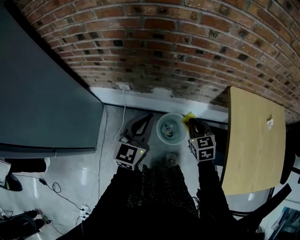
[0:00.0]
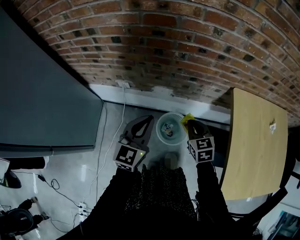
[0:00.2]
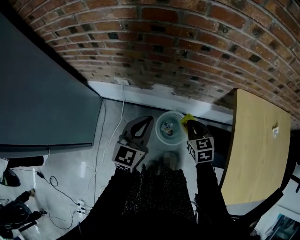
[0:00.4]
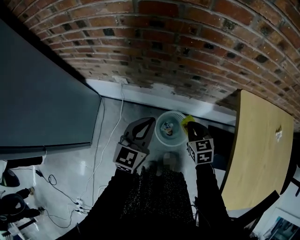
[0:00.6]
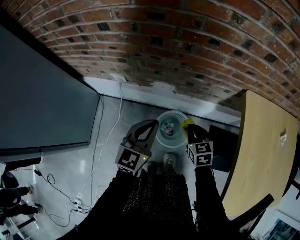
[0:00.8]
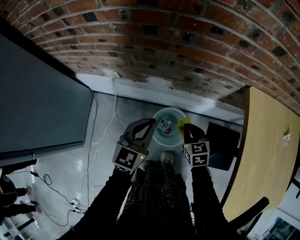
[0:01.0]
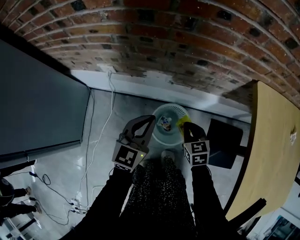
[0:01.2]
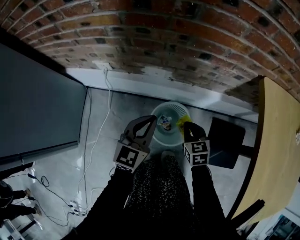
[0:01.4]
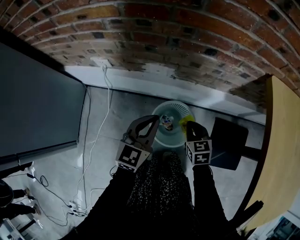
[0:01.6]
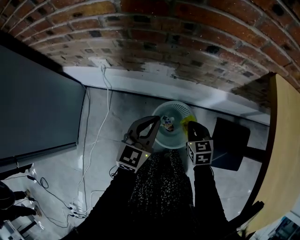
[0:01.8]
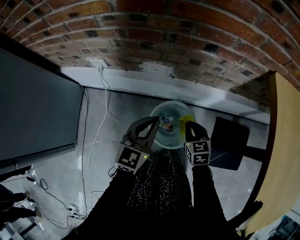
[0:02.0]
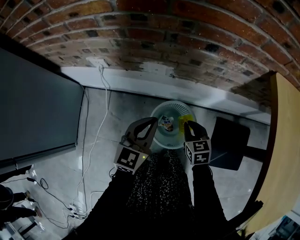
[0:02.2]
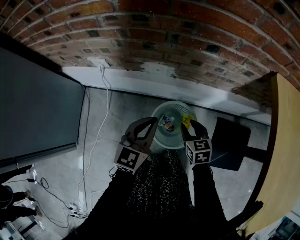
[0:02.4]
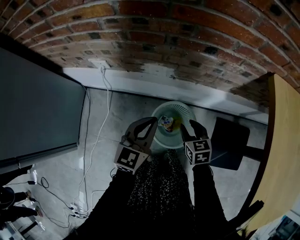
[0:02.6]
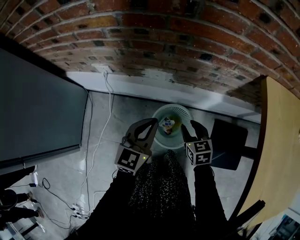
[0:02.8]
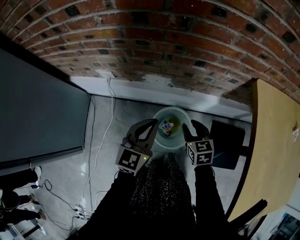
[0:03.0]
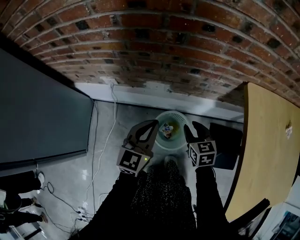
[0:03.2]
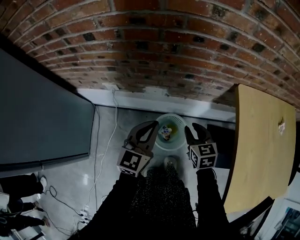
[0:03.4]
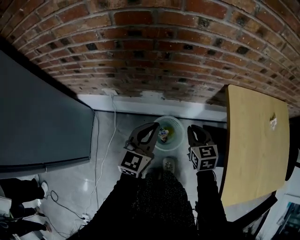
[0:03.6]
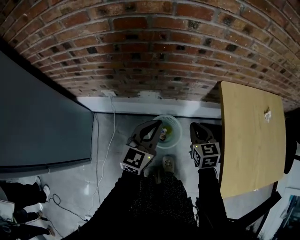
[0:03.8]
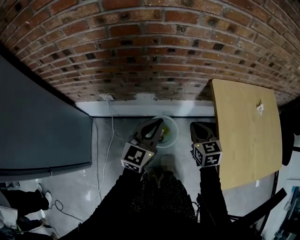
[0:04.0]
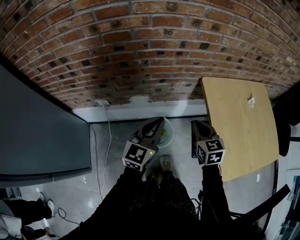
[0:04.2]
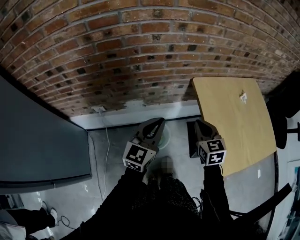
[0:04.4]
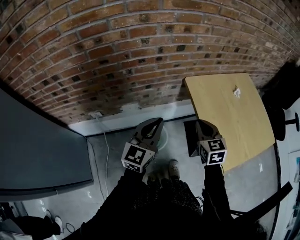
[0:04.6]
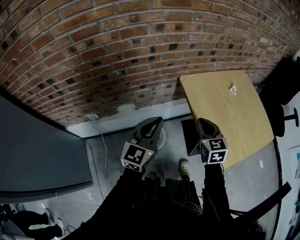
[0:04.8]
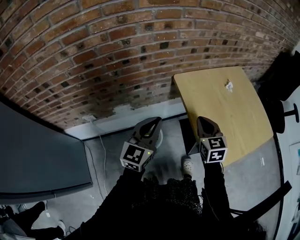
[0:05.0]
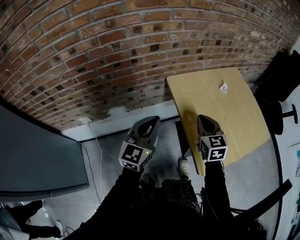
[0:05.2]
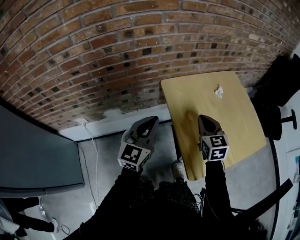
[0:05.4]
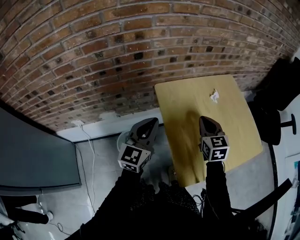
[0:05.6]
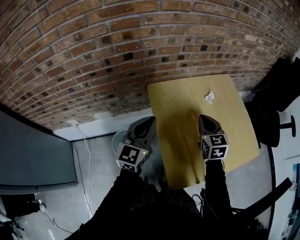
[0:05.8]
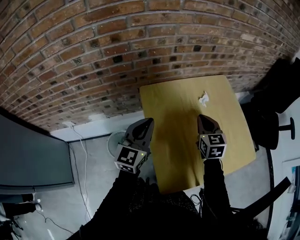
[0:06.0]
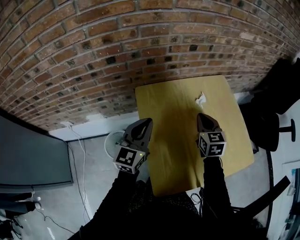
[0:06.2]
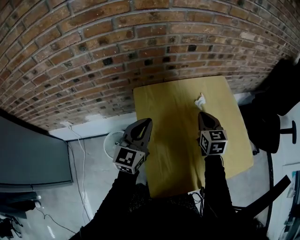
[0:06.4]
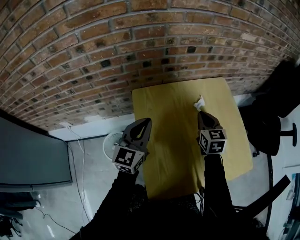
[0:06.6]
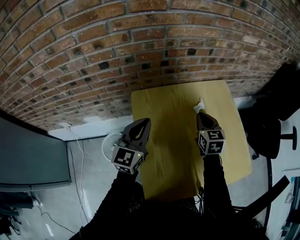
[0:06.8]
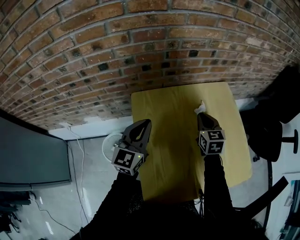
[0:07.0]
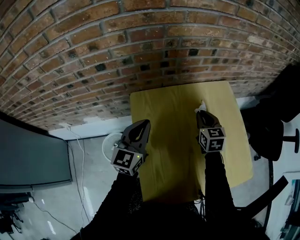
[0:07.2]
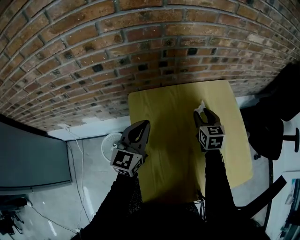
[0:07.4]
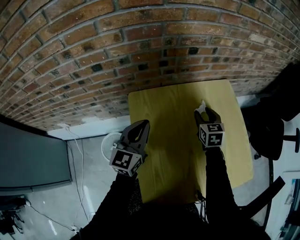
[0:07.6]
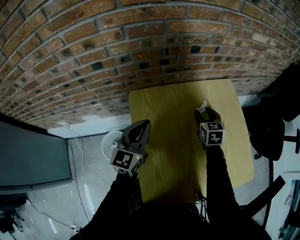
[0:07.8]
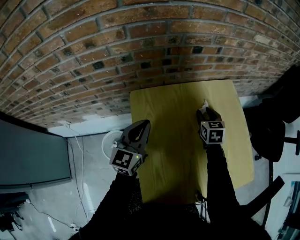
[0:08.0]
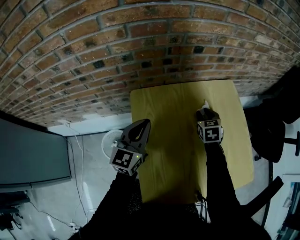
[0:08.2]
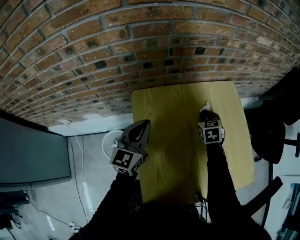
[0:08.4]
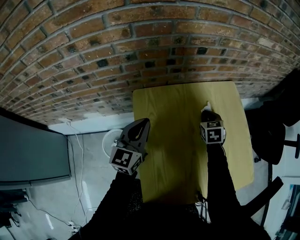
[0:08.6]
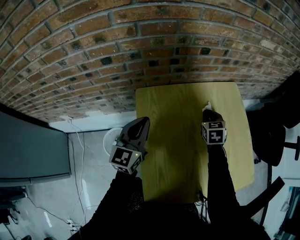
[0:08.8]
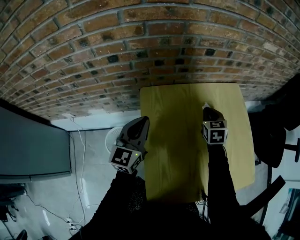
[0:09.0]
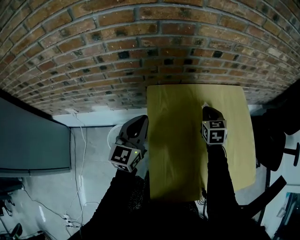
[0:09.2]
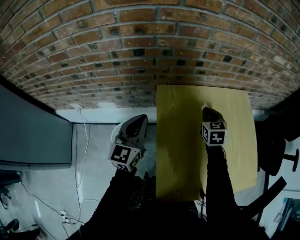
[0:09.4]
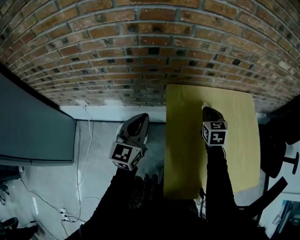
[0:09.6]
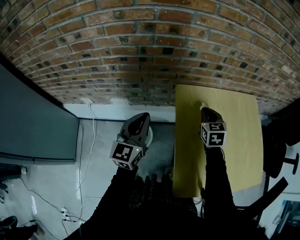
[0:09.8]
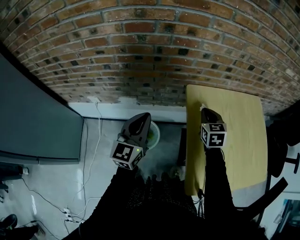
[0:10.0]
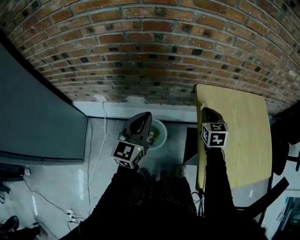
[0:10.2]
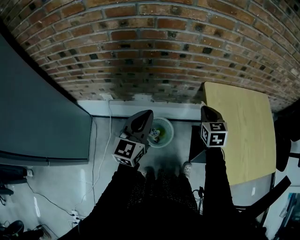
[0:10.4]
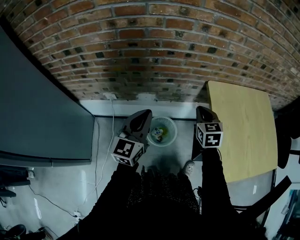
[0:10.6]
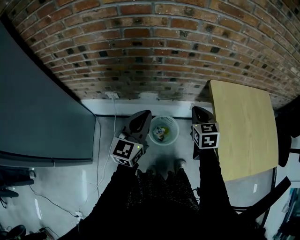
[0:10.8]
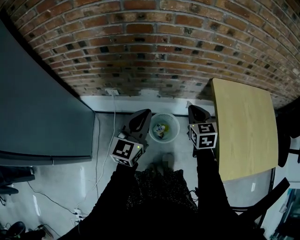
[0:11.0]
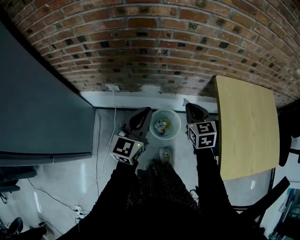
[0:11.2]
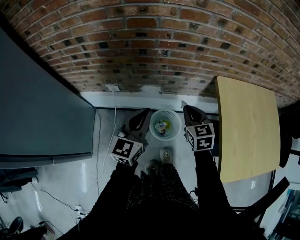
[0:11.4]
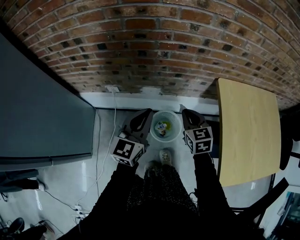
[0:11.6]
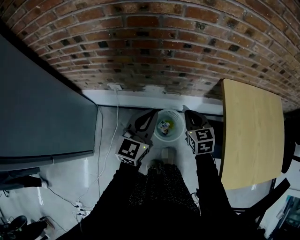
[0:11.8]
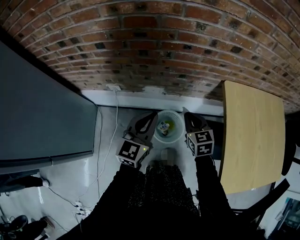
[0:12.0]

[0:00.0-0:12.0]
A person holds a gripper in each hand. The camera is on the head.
0.0 to 1.6 s: The grippers both shift downward by approximately 30 cm.
1.6 to 3.0 s: The two grippers go roughly 10 cm upward. The right gripper opens.
3.0 to 4.4 s: The grippers both shift upward and to the right by about 30 cm. The left gripper turns by roughly 20 degrees, while the right gripper swivels approximately 20 degrees, and closes its fingers.
4.4 to 6.0 s: The two grippers go roughly 30 cm to the right and forward.
6.0 to 7.6 s: The right gripper heads forward, downward and to the right, covering roughly 15 cm, and opens; the left gripper is displaced forward by about 10 cm.
7.6 to 9.0 s: The right gripper closes.
9.0 to 10.4 s: The two grippers go about 35 cm to the left.
10.4 to 12.0 s: The left gripper travels downward and to the left by about 10 cm; the right gripper moves to the left and downward, roughly 15 cm.

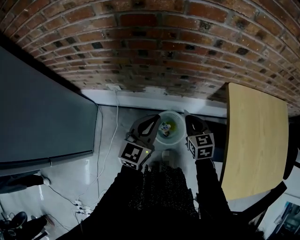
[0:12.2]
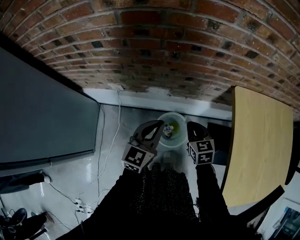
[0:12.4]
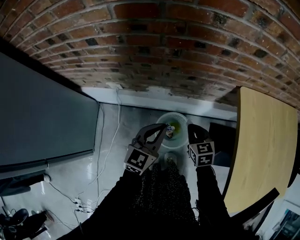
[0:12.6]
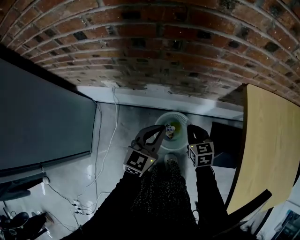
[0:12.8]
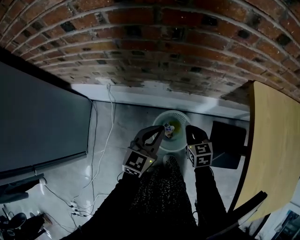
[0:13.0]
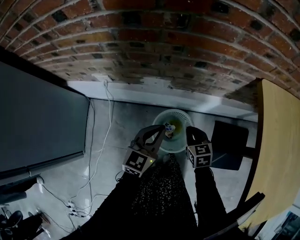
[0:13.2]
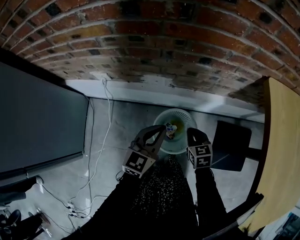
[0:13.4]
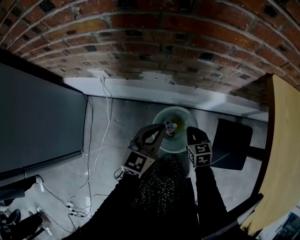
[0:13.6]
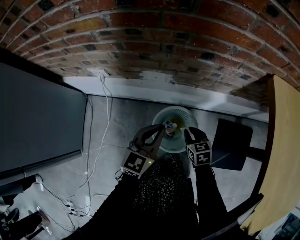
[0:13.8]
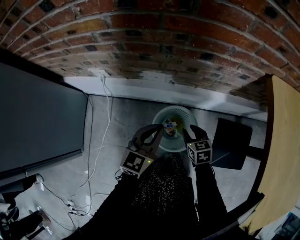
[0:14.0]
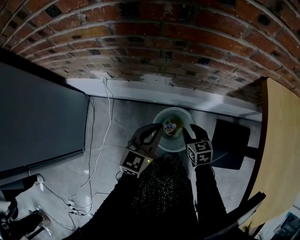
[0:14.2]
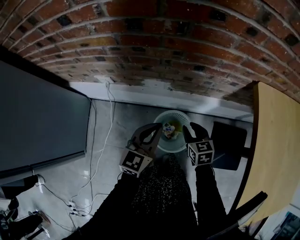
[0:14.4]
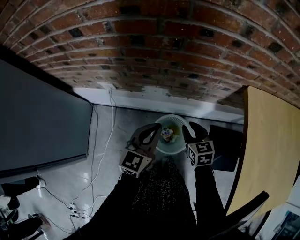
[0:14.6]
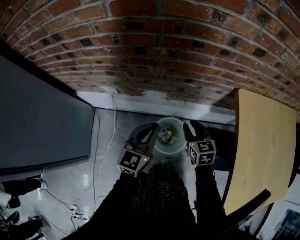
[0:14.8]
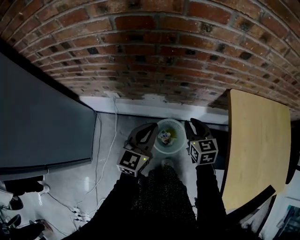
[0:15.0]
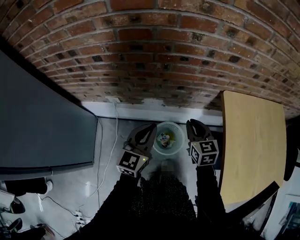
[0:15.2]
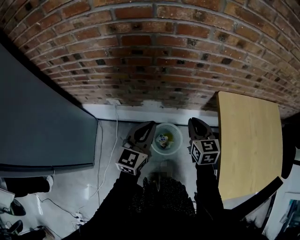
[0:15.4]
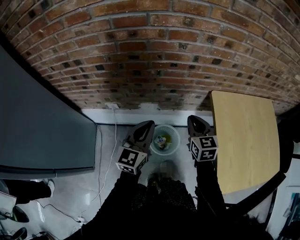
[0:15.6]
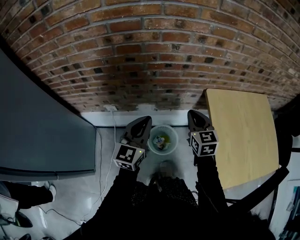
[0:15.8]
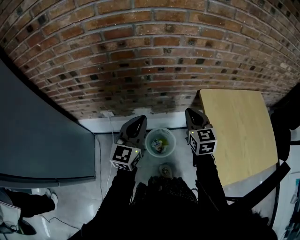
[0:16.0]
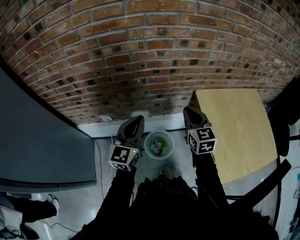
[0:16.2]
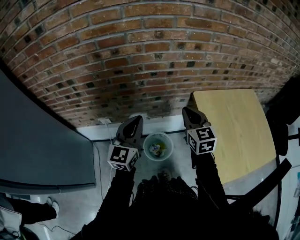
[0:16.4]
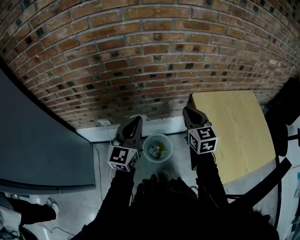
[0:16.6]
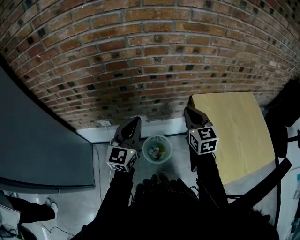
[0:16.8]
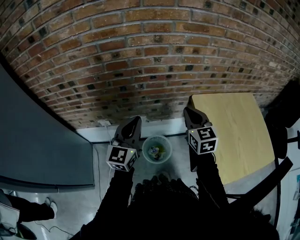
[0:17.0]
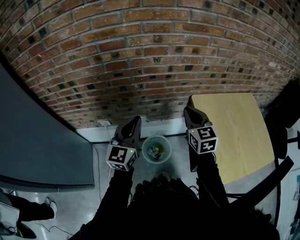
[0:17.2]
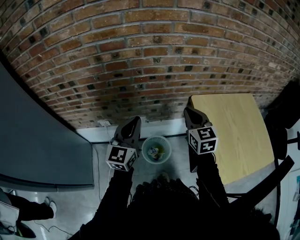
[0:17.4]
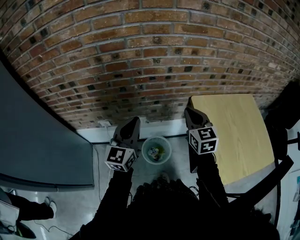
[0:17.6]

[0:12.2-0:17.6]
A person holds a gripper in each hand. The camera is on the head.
12.2 to 13.6 s: The two grippers go about 30 cm downward.
13.6 to 15.0 s: Both grippers travel together upward, some 30 cm. The right gripper opens up.
15.0 to 16.2 s: The grippers both shift upward by about 20 cm. The right gripper closes its fingers.
16.2 to 17.6 s: The grippers move only a little.

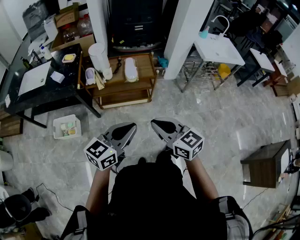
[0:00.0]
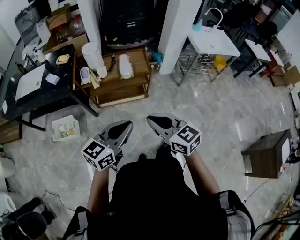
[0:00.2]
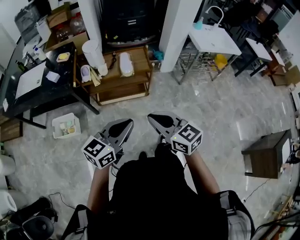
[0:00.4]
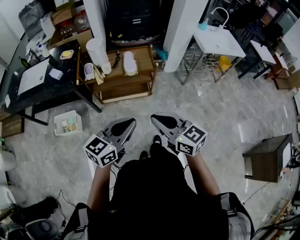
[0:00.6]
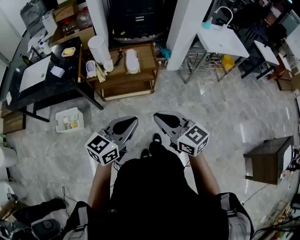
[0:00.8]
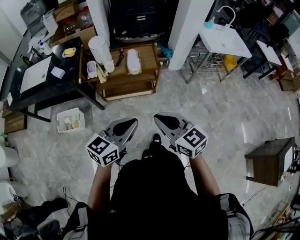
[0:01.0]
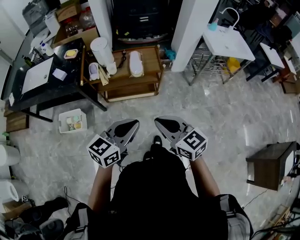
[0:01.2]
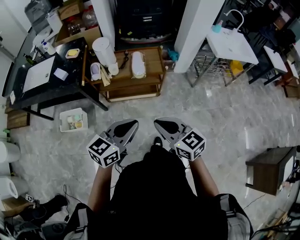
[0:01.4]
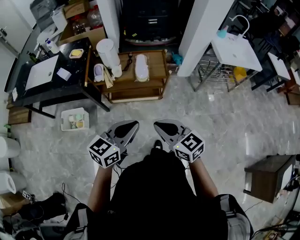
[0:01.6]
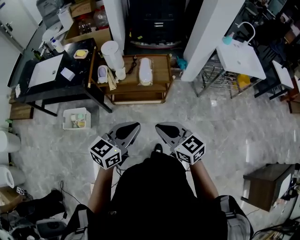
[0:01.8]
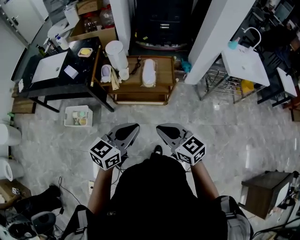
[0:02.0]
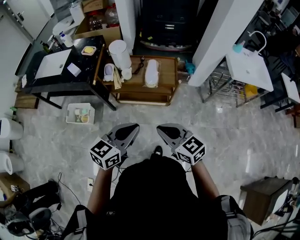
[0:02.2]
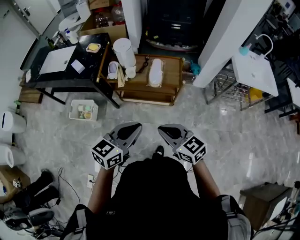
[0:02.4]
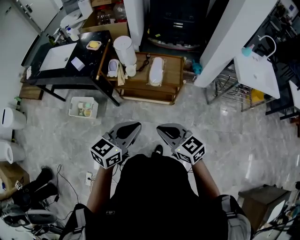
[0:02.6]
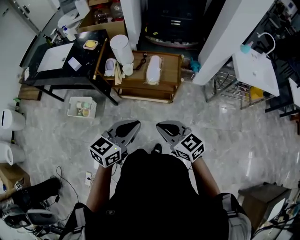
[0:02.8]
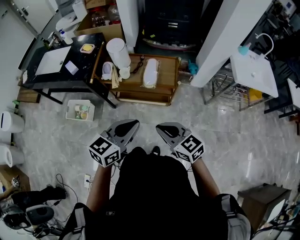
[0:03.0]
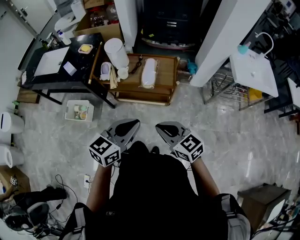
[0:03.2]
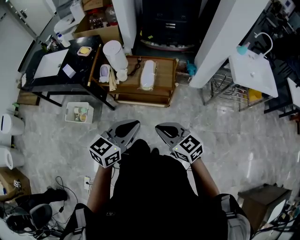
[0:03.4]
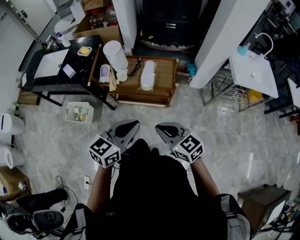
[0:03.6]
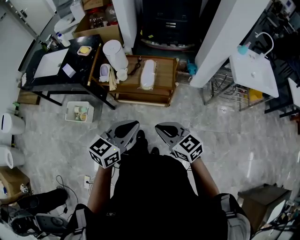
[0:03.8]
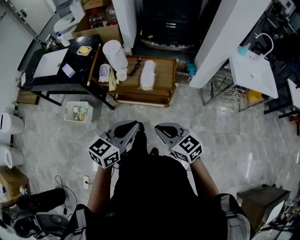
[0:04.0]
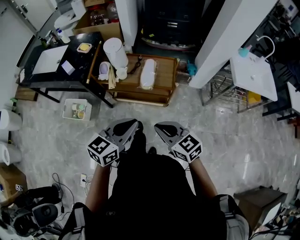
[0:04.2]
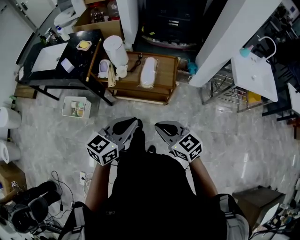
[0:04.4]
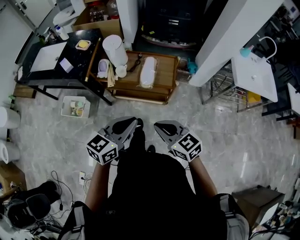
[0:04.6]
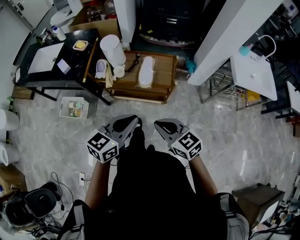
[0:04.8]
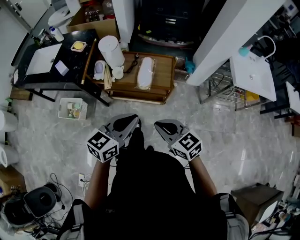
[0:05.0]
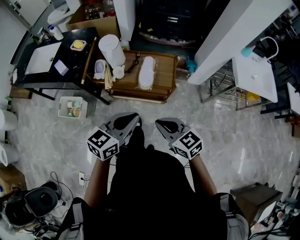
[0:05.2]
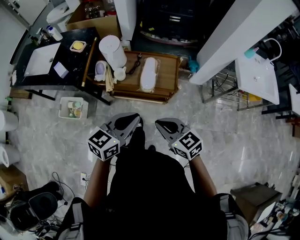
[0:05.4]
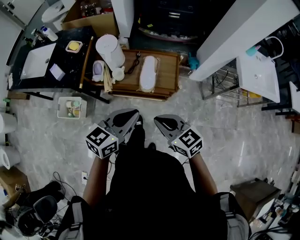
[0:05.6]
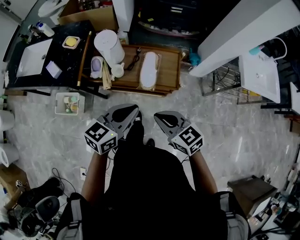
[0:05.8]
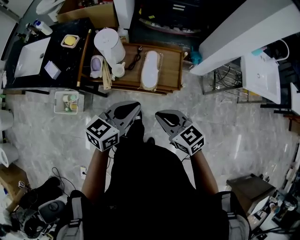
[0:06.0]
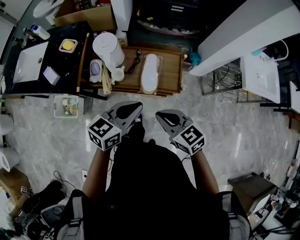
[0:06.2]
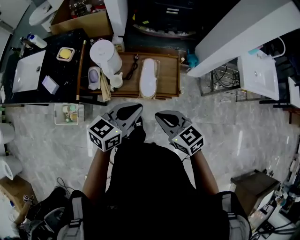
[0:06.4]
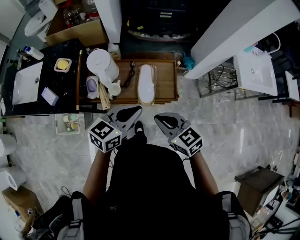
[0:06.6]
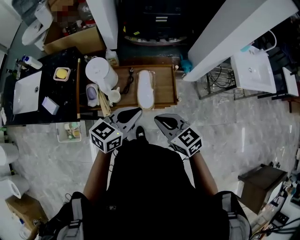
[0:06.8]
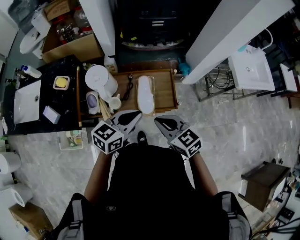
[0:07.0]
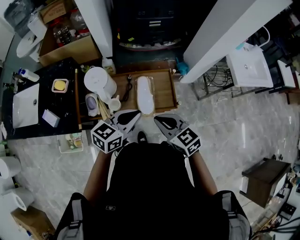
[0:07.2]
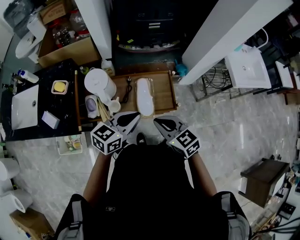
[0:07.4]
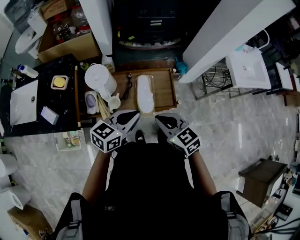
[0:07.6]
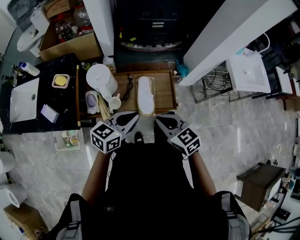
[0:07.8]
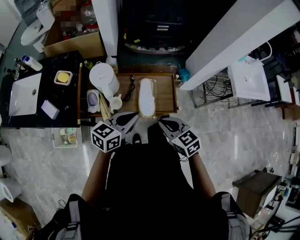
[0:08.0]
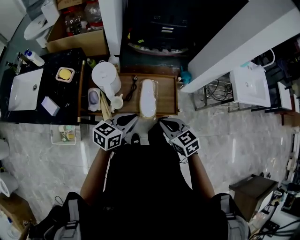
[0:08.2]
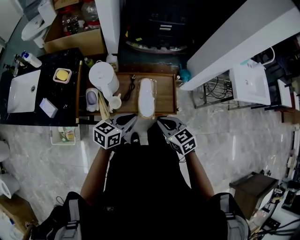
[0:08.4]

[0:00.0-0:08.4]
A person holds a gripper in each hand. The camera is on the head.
0.0 to 1.4 s: The left gripper is displaced forward by approximately 5 cm; the right gripper ends up about 5 cm from where it was.
1.4 to 2.8 s: The two grippers go some 5 cm forward.
2.8 to 4.2 s: The right gripper shifts by approximately 5 cm. Meanwhile the left gripper moves roughly 5 cm.
4.2 to 5.6 s: Both grippers move forward, roughly 15 cm.
5.6 to 7.0 s: The two grippers go approximately 15 cm forward.
7.0 to 8.4 s: The two grippers go roughly 5 cm downward.
